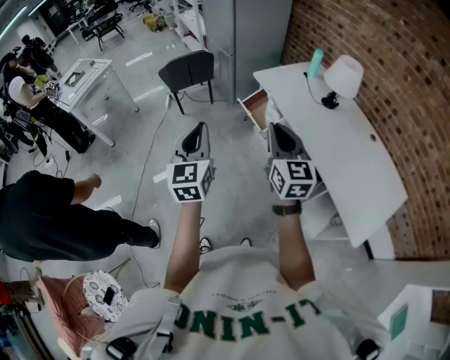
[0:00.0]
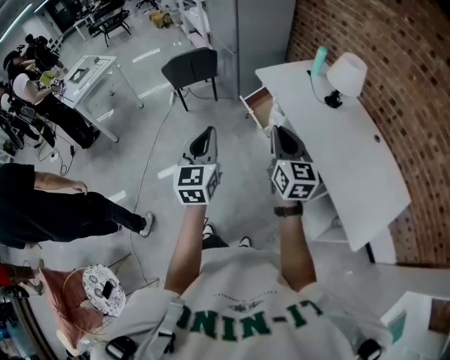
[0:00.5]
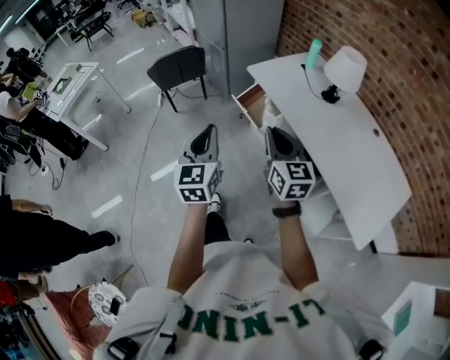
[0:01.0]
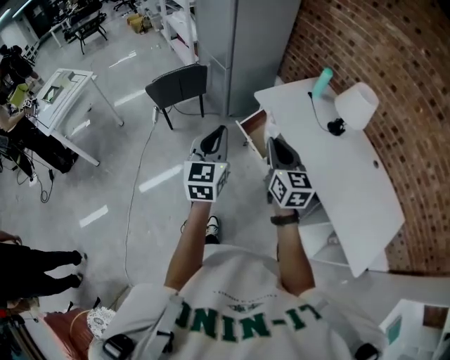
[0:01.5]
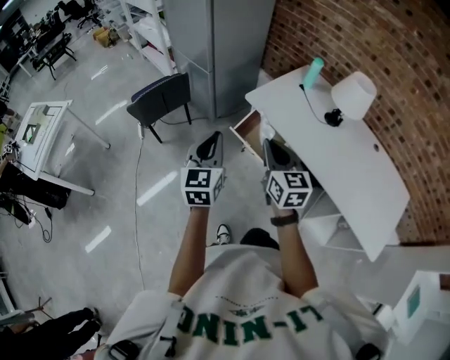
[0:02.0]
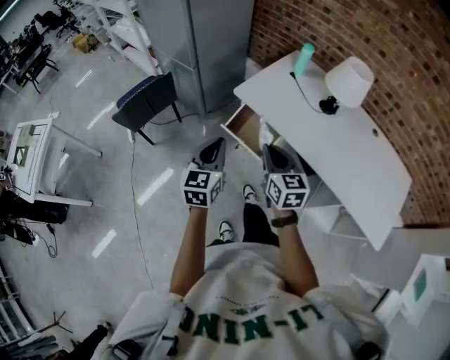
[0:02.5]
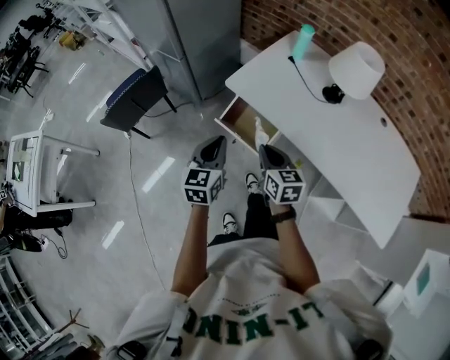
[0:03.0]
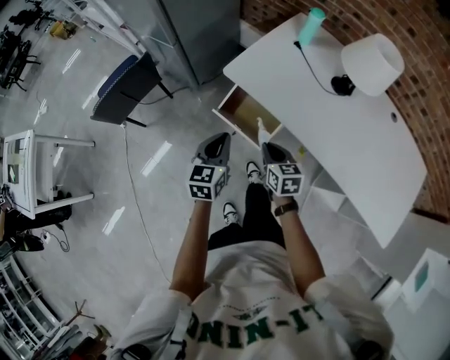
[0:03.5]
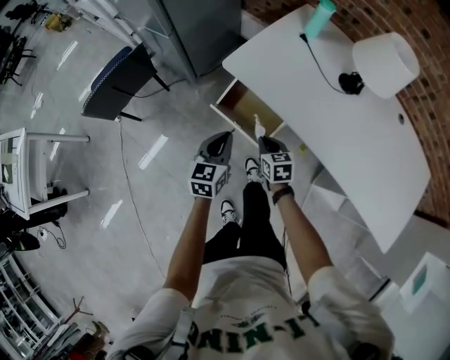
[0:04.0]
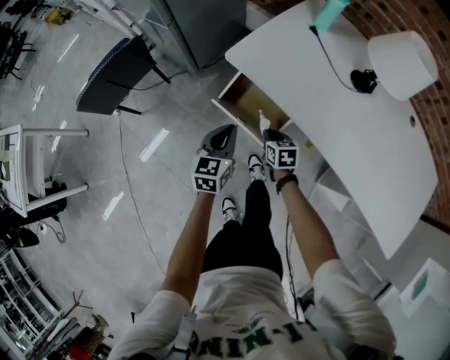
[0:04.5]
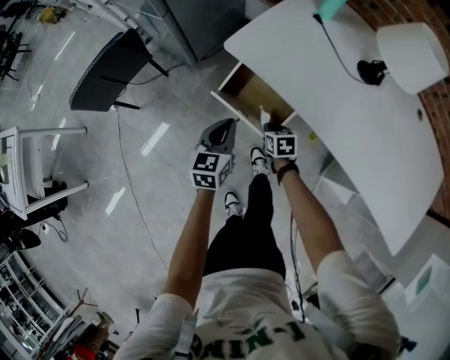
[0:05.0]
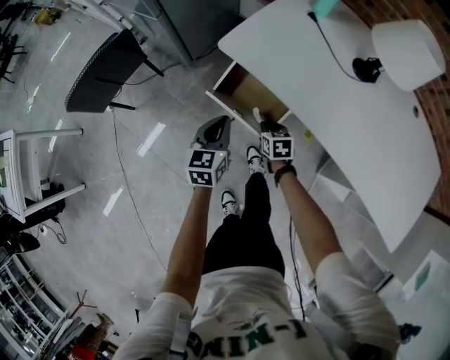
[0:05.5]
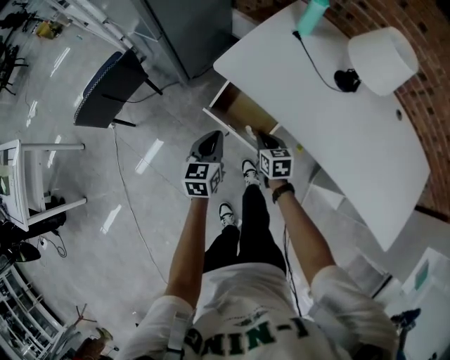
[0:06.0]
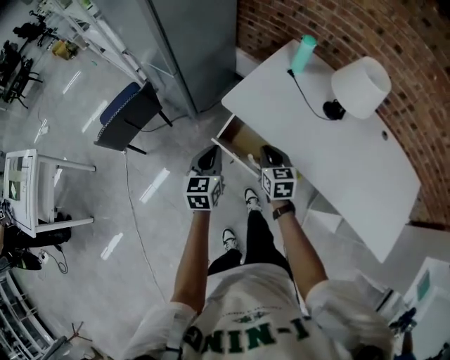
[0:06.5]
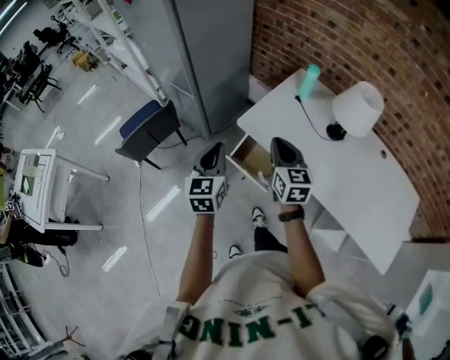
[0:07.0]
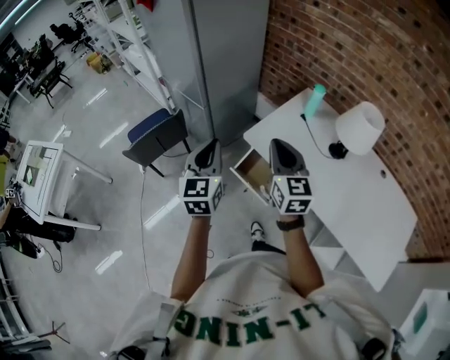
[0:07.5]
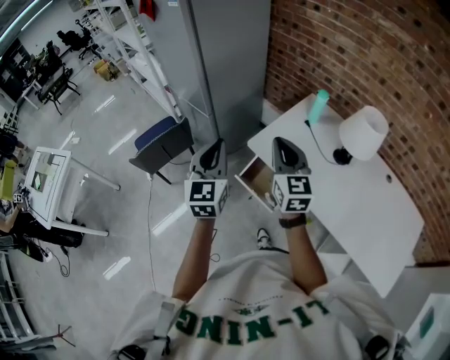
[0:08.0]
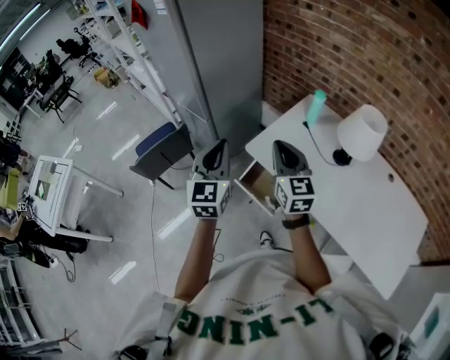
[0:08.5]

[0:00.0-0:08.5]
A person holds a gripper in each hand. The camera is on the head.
0:00.0 to 0:02.0: Both grippers travel together forward, about 30 cm. The left gripper changes its angle by some 20 degrees.
0:02.0 to 0:04.0: The grippers both shift downward and forward by roughly 35 cm. The left gripper turns by about 30 degrees; the right gripper angles its fingers downward, by about 30 degrees.
0:04.0 to 0:06.5: The left gripper moves upward, about 10 cm. Meanwhile the right gripper shifts some 15 cm upward.
0:06.5 to 0:08.5: Both grippers move upward, approximately 25 cm. The left gripper rotates roughly 30 degrees; the right gripper rotates some 30 degrees.

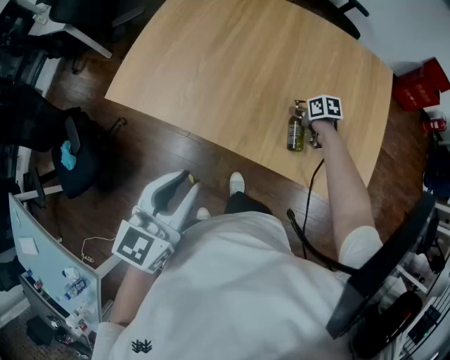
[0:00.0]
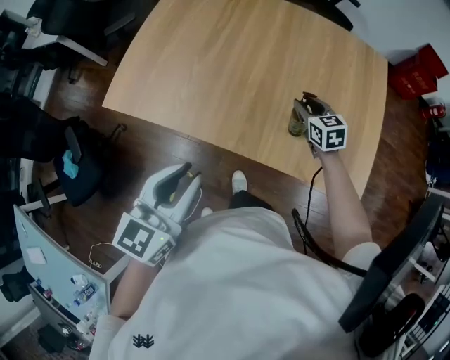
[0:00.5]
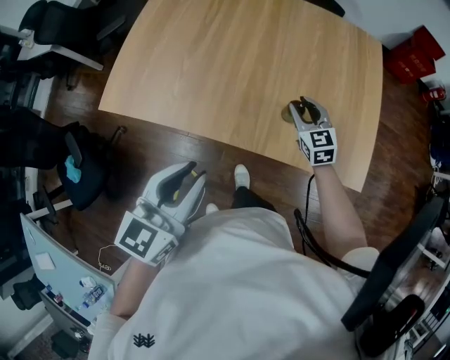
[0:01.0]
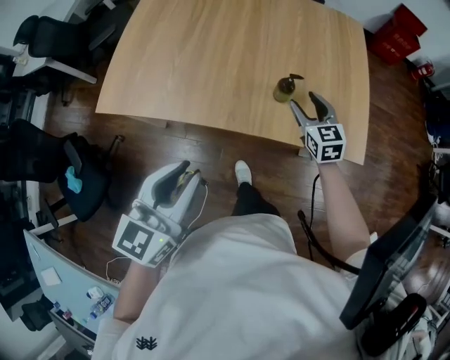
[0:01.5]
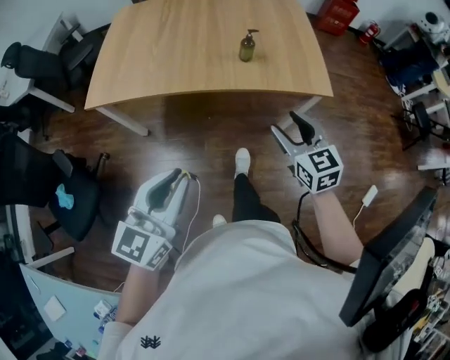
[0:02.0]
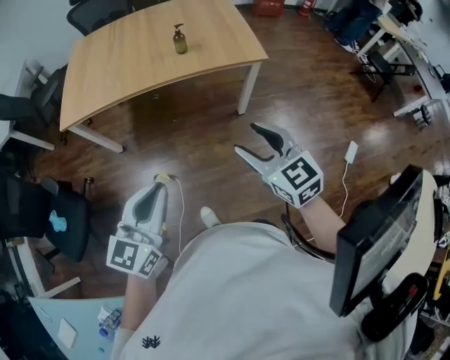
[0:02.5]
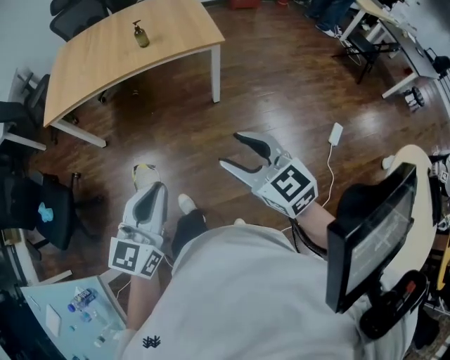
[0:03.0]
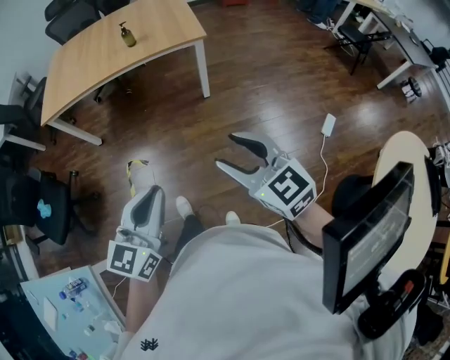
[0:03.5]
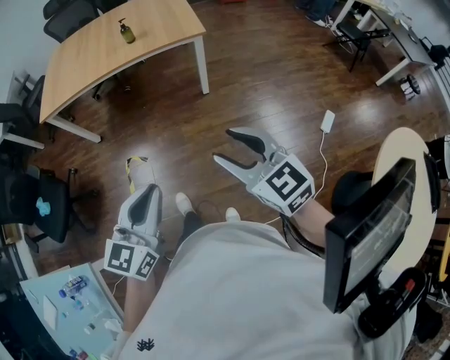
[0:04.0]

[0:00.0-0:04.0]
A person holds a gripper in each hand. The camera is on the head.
0:00.0 to 0:02.0: The right gripper changes place by approximately 50 cm, points its fingers roughly 30 degrees further upward, and opens its fingers. Meanwhile the left gripper ends up some 20 cm from where it was, and swivels roughly 20 degrees.
0:02.0 to 0:04.0: The left gripper shifts roughly 35 cm backward and to the right. The right gripper shifts approximately 40 cm backward.

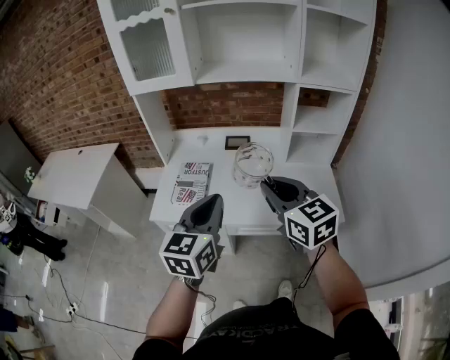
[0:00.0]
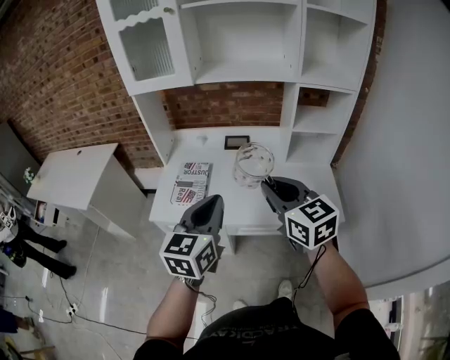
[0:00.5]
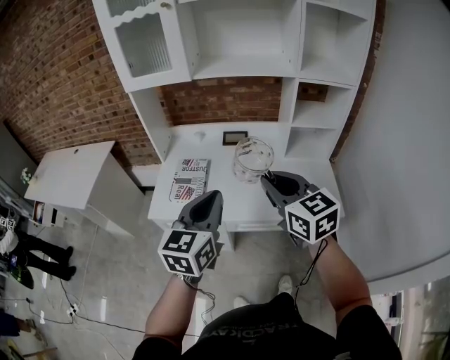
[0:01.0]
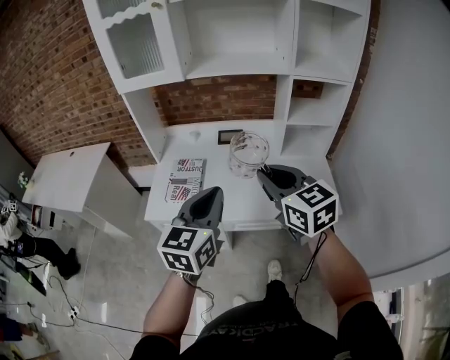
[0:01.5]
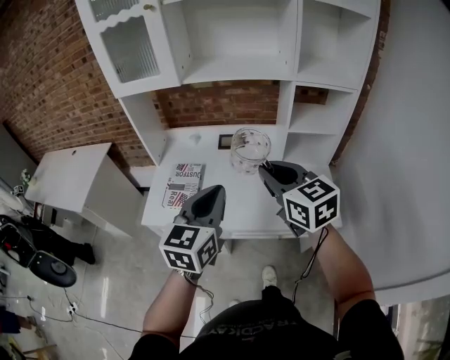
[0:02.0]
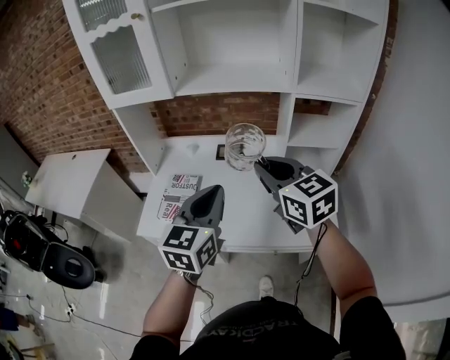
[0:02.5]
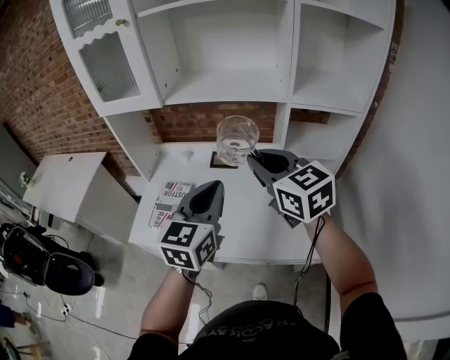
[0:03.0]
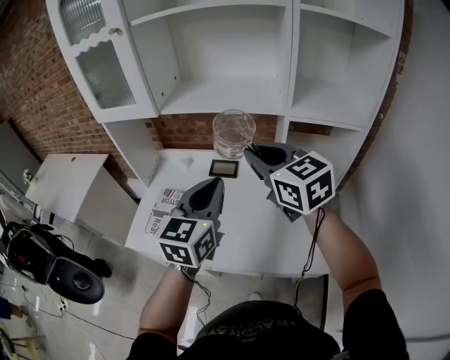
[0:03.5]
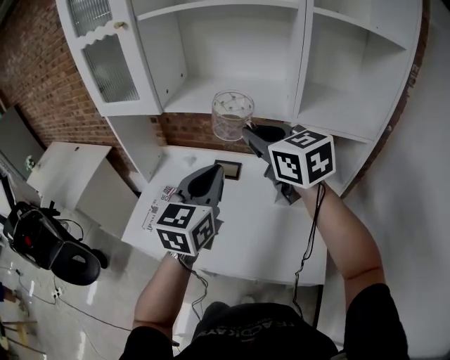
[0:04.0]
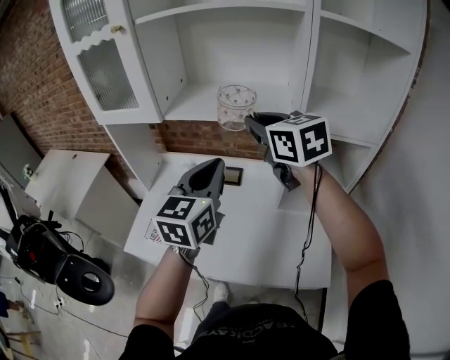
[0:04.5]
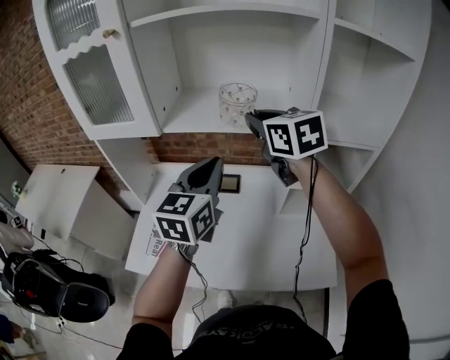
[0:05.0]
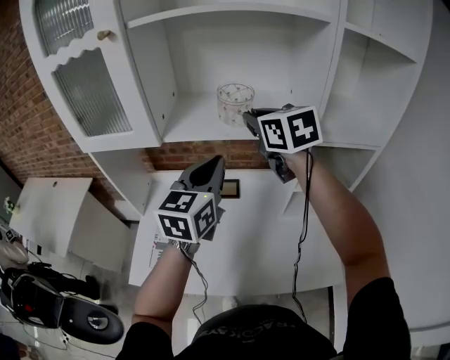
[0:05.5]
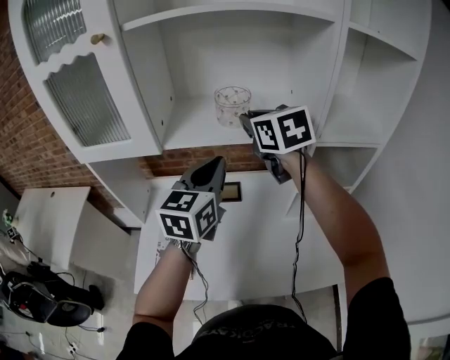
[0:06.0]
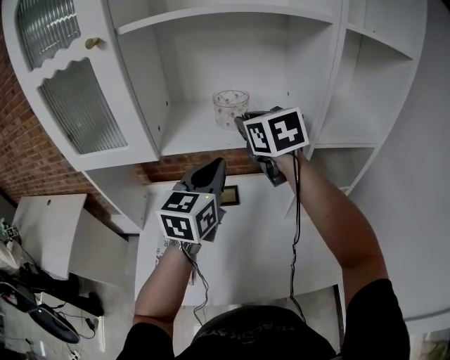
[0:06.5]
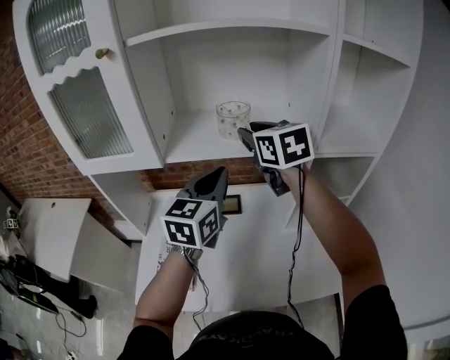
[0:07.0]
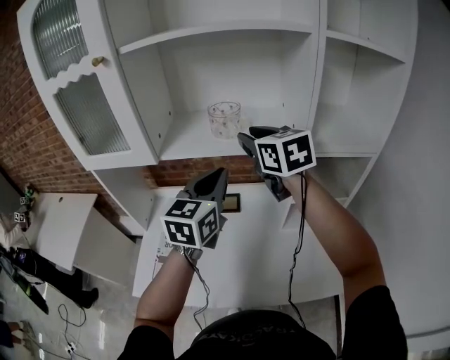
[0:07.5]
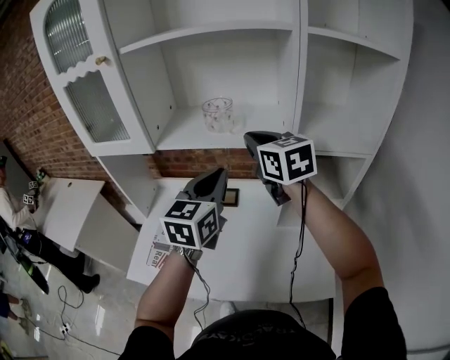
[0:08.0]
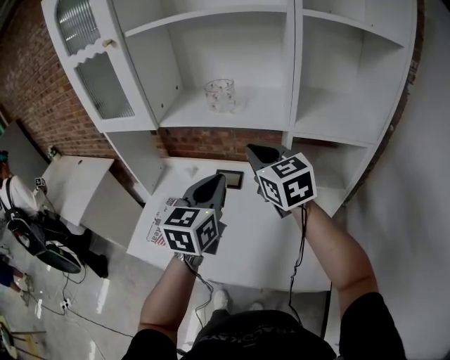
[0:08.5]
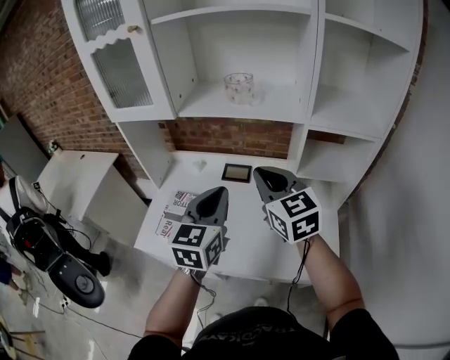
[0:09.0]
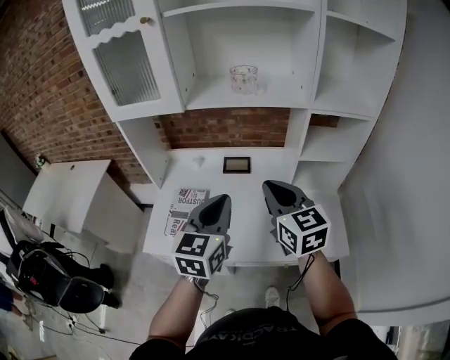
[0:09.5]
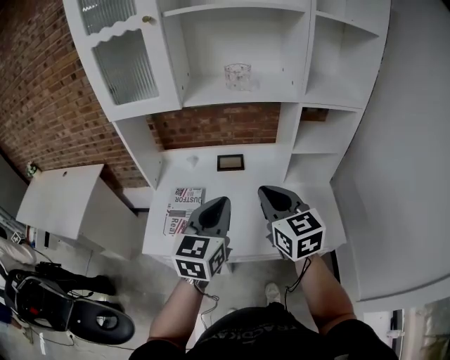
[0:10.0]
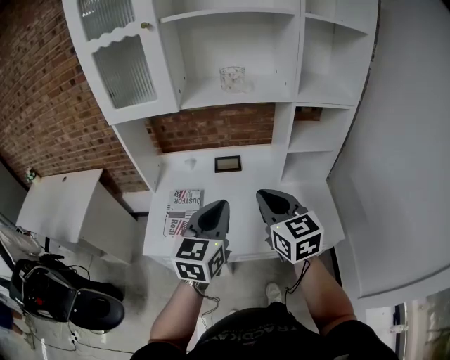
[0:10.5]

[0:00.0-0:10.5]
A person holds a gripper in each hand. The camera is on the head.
0:00.0 to 0:02.0: The right gripper goes some 10 cm forward; the left gripper goes about 10 cm forward and to the right.
0:02.0 to 0:04.0: The left gripper travels forward and to the right by approximately 20 cm, while the right gripper travels forward and upward by about 25 cm.
0:04.0 to 0:06.5: The grippers both shift forward by approximately 15 cm. The right gripper changes its angle by roughly 30 degrees.
0:06.5 to 0:08.5: Both grippers travel together backward and to the right, roughly 15 cm. The right gripper rotates roughly 20 degrees.
0:08.5 to 0:10.5: The grippers both shift backward and to the left by roughly 25 cm.

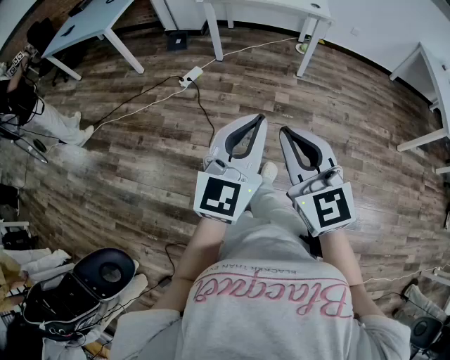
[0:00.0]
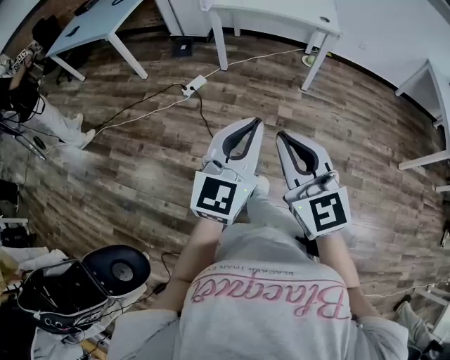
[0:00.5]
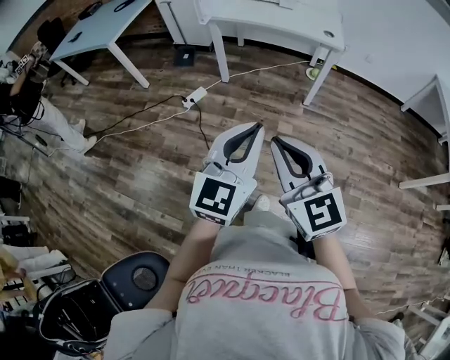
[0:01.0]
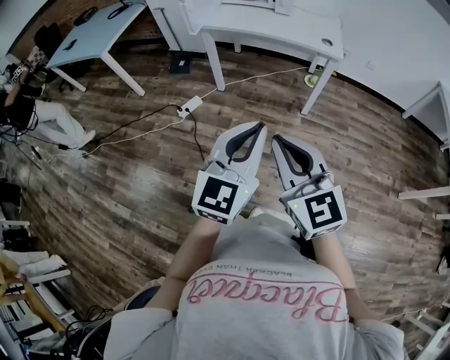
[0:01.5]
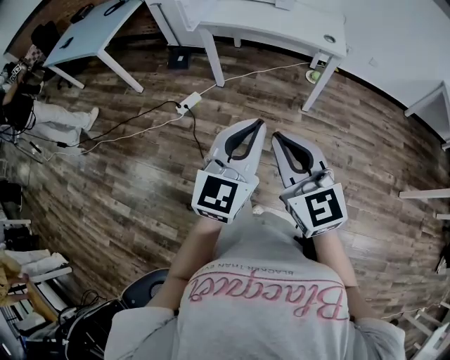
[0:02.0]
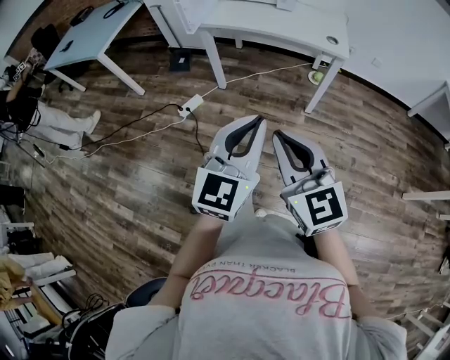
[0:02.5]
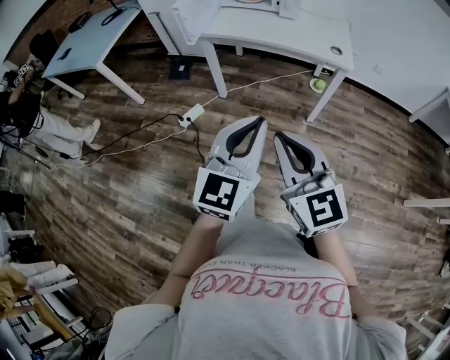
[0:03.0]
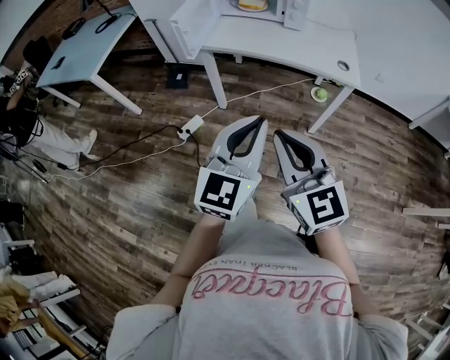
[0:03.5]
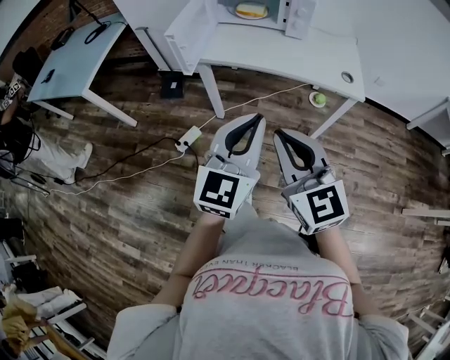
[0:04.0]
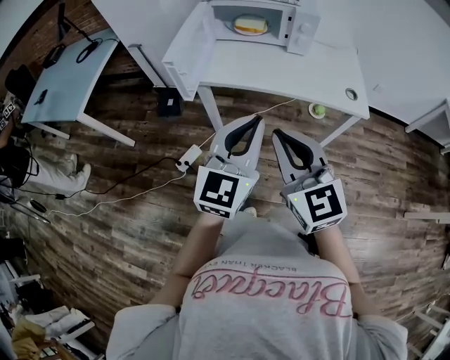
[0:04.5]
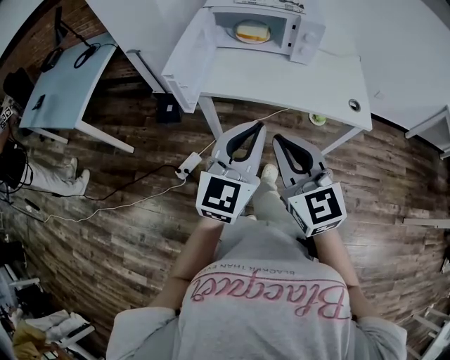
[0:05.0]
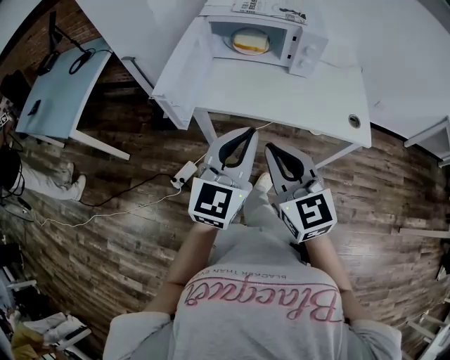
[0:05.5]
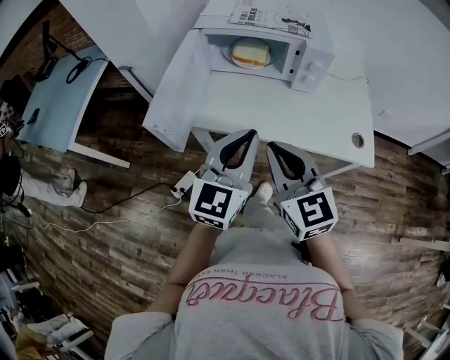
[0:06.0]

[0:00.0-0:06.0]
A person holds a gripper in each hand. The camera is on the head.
0:00.0 to 0:02.0: Both grippers travel together forward, roughly 30 cm.
0:02.0 to 0:04.0: Both grippers travel together forward, approximately 30 cm.
0:04.0 to 0:06.0: Both grippers move forward, about 30 cm.
